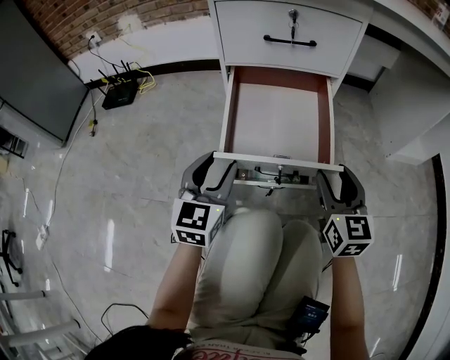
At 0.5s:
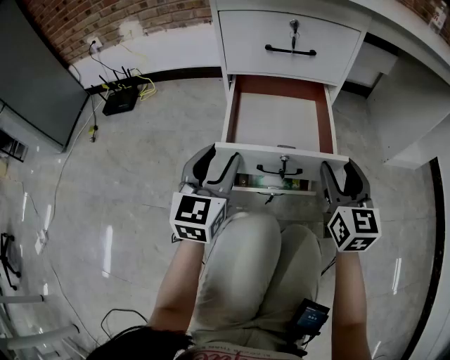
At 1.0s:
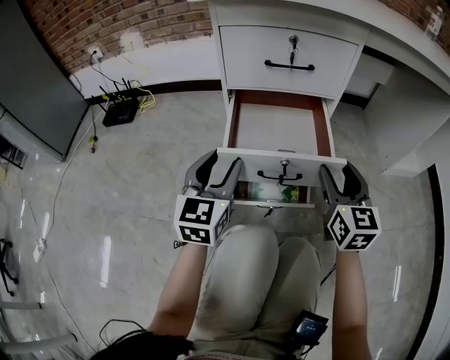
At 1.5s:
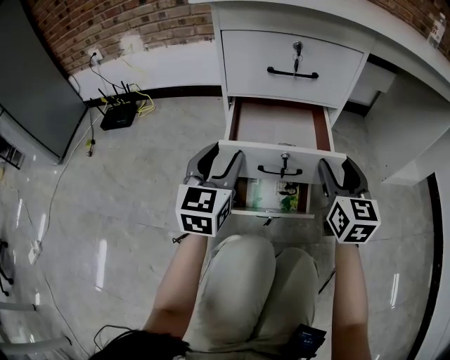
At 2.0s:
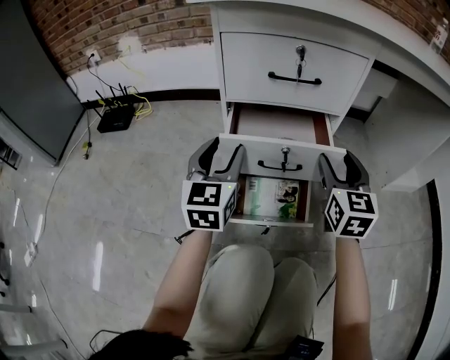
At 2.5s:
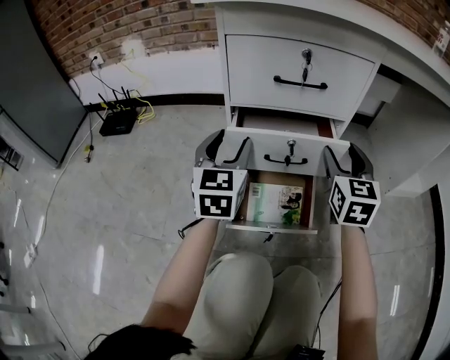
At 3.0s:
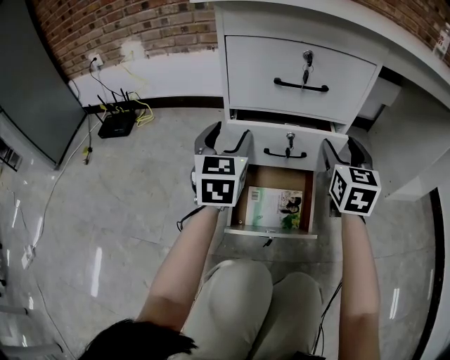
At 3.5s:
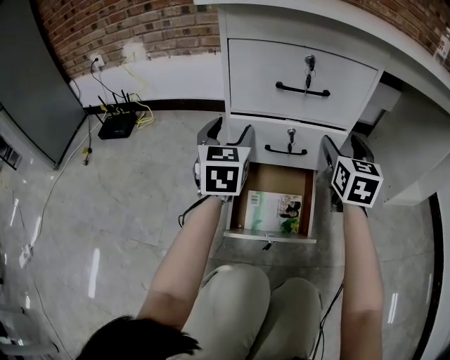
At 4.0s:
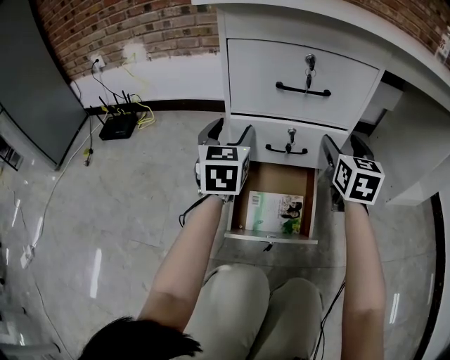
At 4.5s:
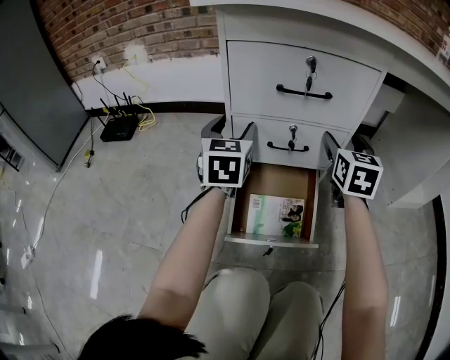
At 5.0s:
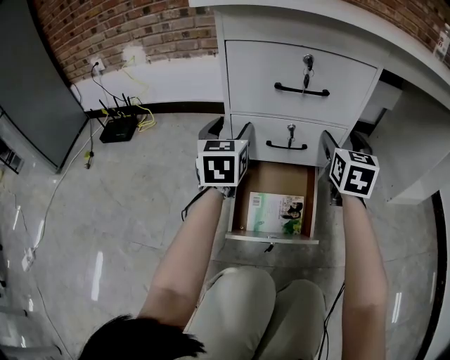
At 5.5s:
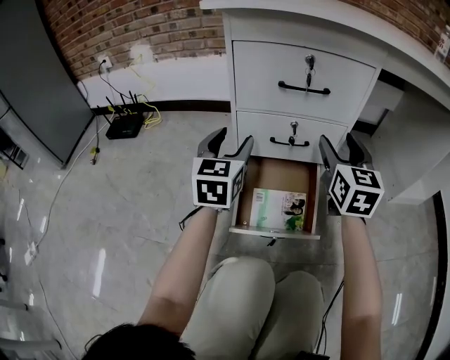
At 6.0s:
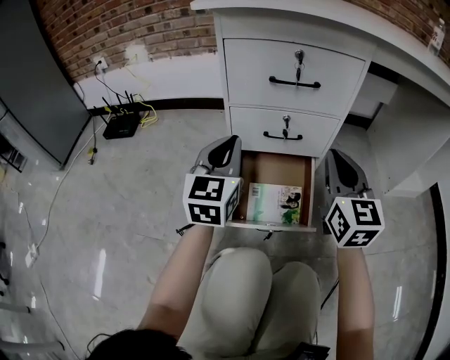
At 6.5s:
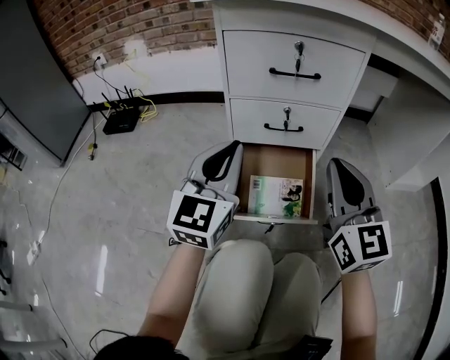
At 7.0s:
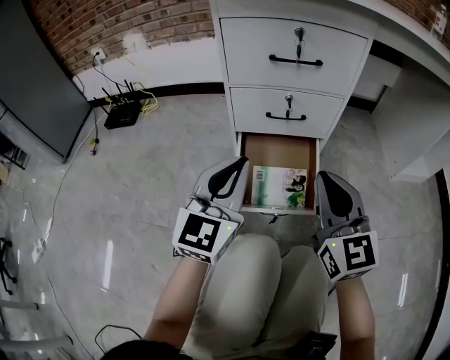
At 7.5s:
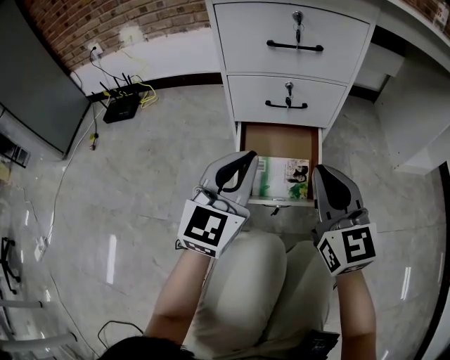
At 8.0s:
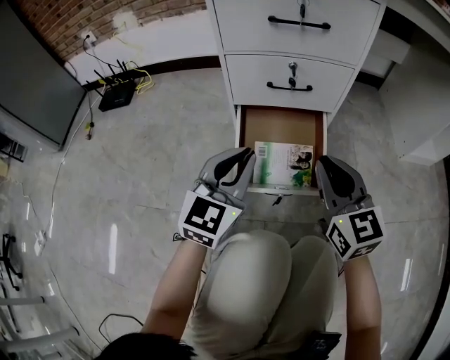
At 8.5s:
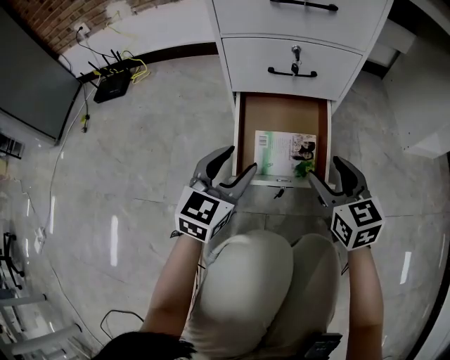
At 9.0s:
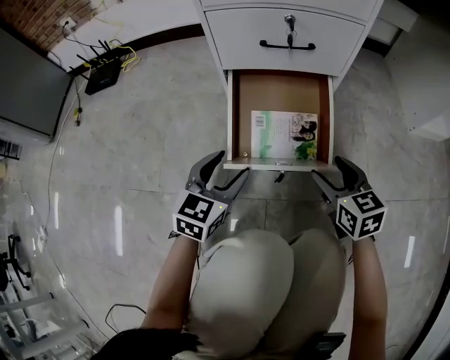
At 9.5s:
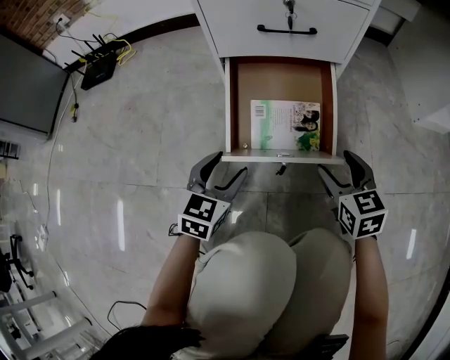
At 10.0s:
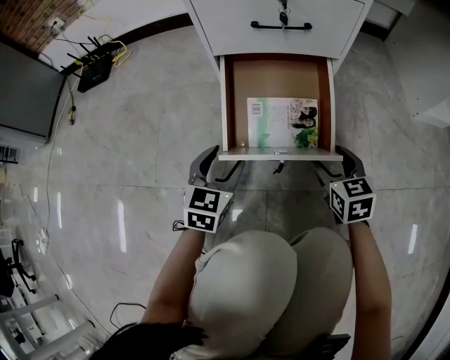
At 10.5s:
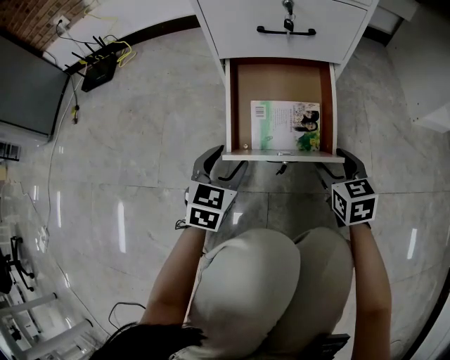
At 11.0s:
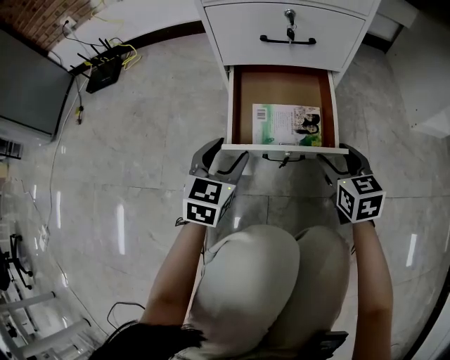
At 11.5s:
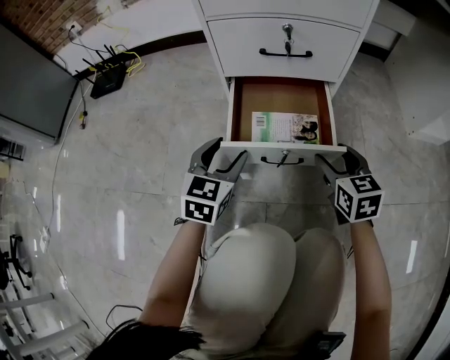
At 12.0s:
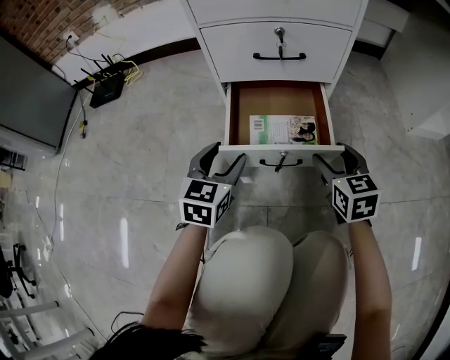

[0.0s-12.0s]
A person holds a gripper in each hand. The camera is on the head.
0.0s to 2.0s: Both grippers travel together forward, approximately 10 cm.
2.0s to 4.0s: Both grippers travel together forward, roughly 10 cm.
4.0s to 6.0s: The grippers both shift backward by approximately 10 cm. The left gripper closes its fingers, while the right gripper closes.
6.0s to 8.0s: Both grippers travel together downward and backward, about 15 cm.
8.0s to 10.0s: Both grippers travel together downward, approximately 20 cm. The left gripper rotates roughly 20 degrees, and opens up. The right gripper rotates some 30 degrees, and opens its fingers.
10.0s to 12.0s: The two grippers go approximately 10 cm upward.

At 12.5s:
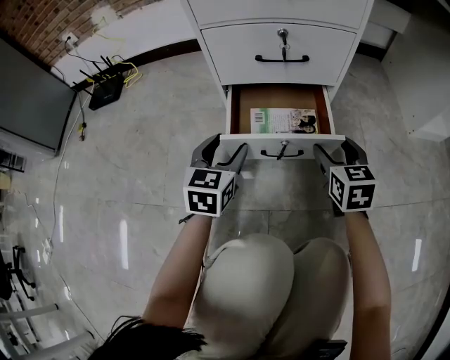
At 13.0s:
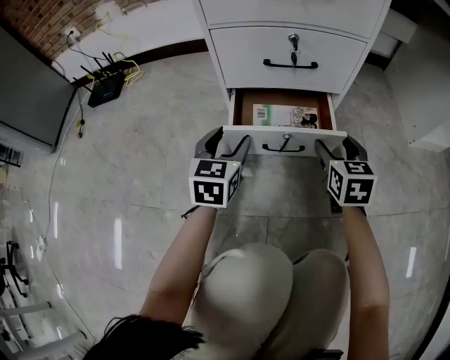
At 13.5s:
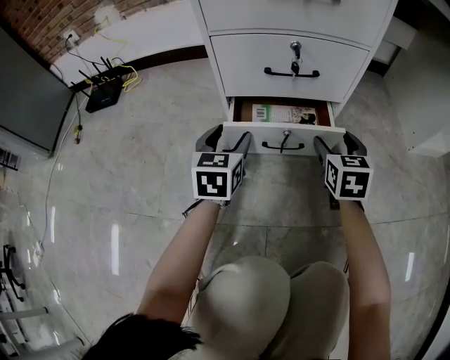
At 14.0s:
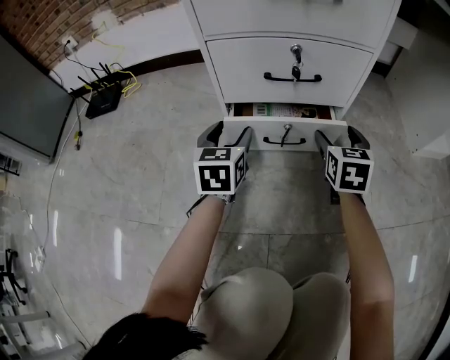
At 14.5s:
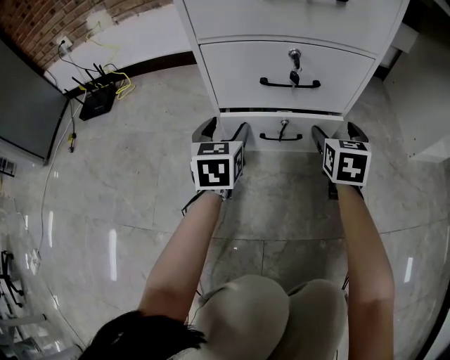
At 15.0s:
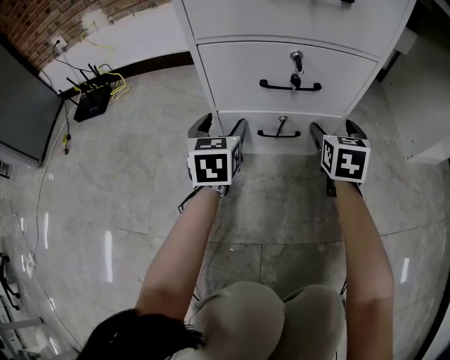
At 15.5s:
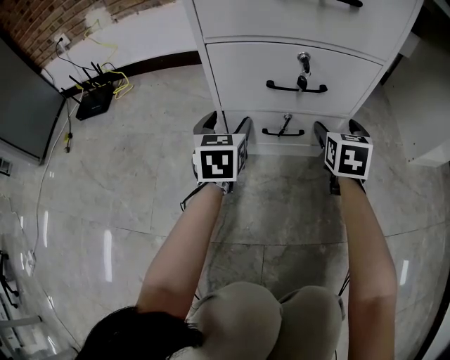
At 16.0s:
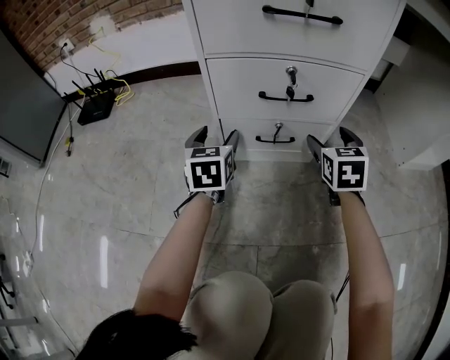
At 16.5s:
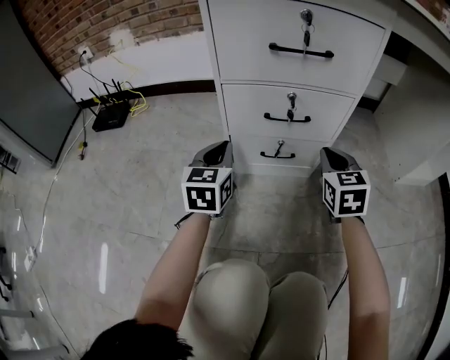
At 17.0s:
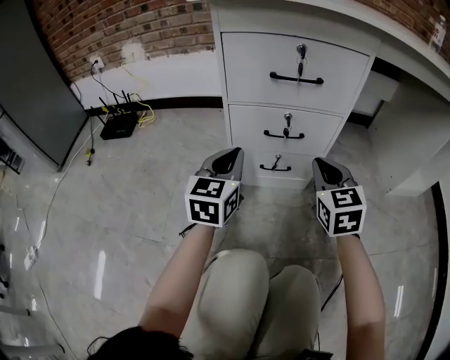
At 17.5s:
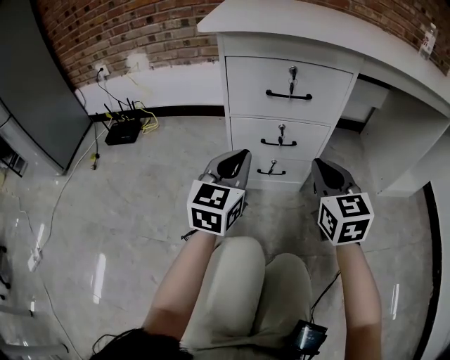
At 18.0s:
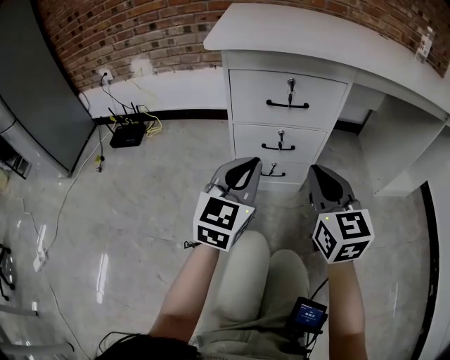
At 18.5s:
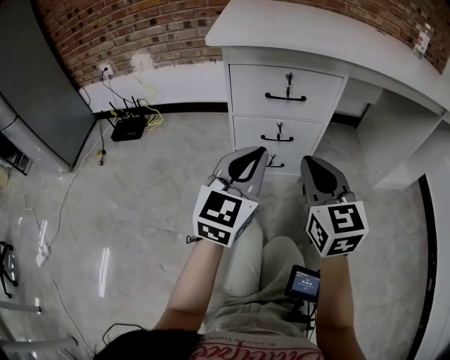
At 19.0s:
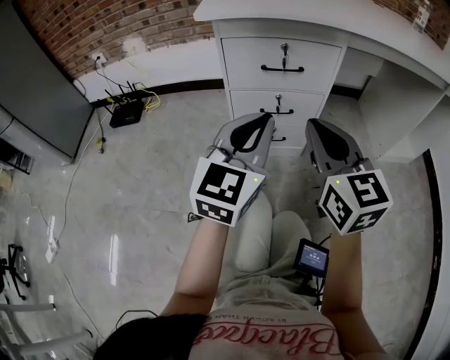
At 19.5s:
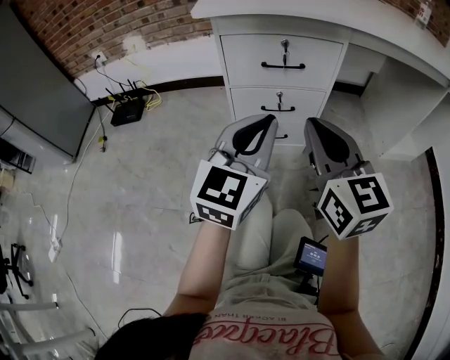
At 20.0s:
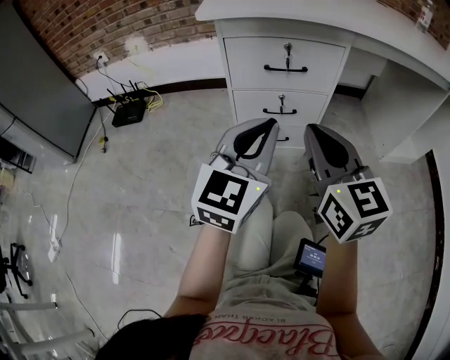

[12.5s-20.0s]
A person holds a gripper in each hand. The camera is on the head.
12.5s to 14.5s: The grippers both shift forward by roughly 15 cm.
14.5s to 16.5s: The right gripper travels upward and backward by approximately 10 cm, and closes up; the left gripper is displaced upward by approximately 10 cm, and closes up.
16.5s to 18.0s: The two grippers go some 25 cm upward and backward. The left gripper turns by approximately 20 degrees, while the right gripper swivels approximately 20 degrees.
18.0s to 20.0s: The two grippers go some 5 cm upward.

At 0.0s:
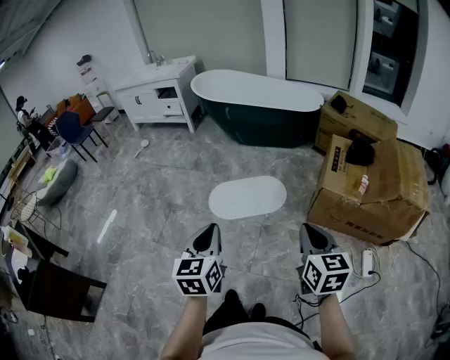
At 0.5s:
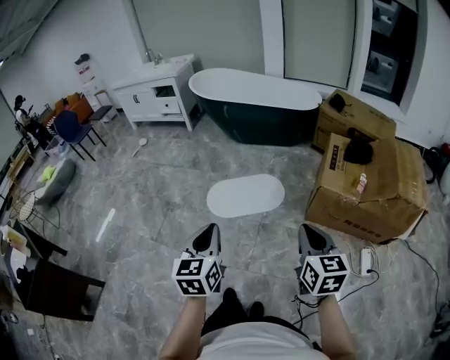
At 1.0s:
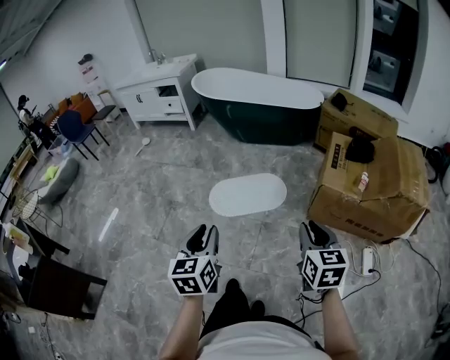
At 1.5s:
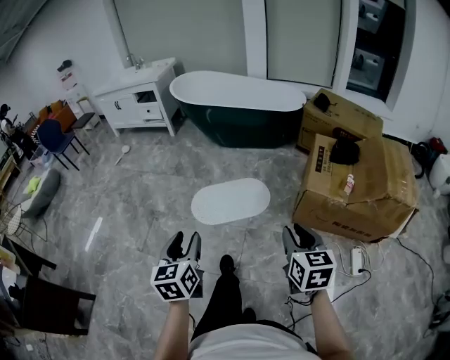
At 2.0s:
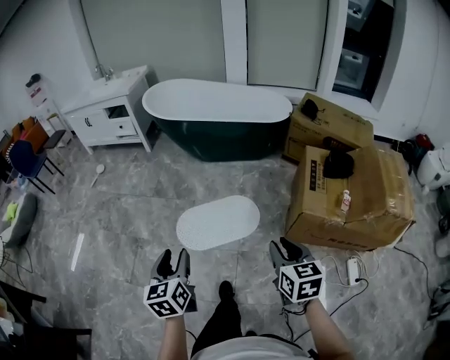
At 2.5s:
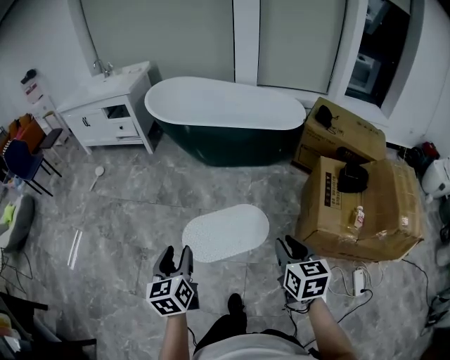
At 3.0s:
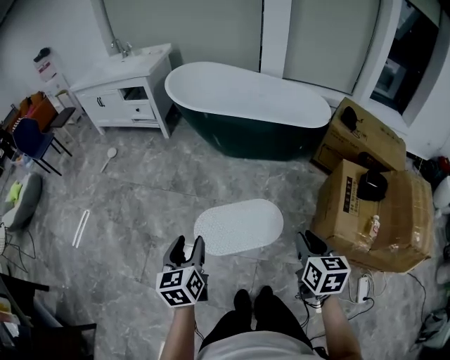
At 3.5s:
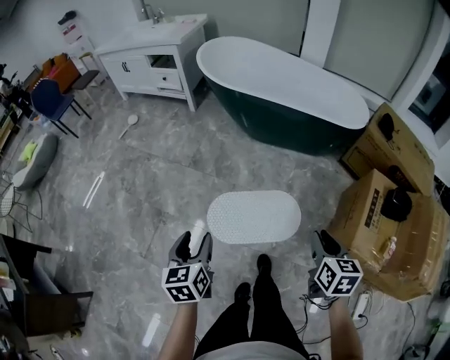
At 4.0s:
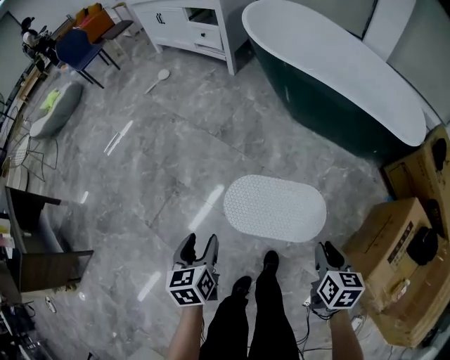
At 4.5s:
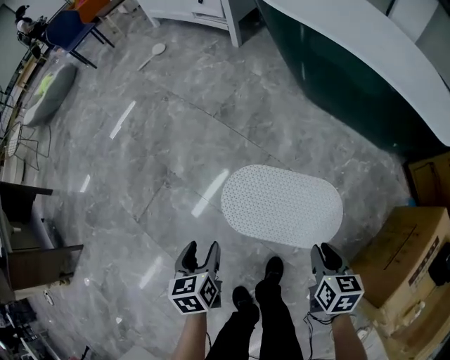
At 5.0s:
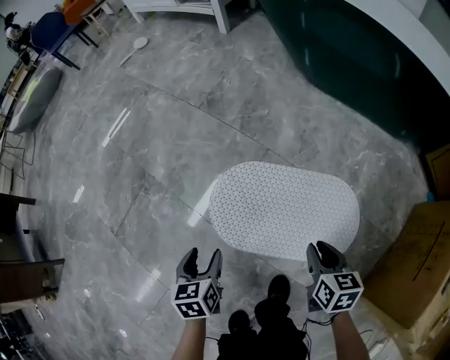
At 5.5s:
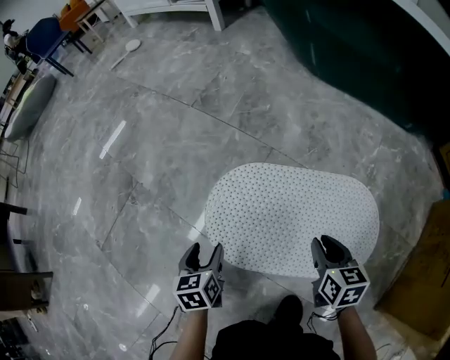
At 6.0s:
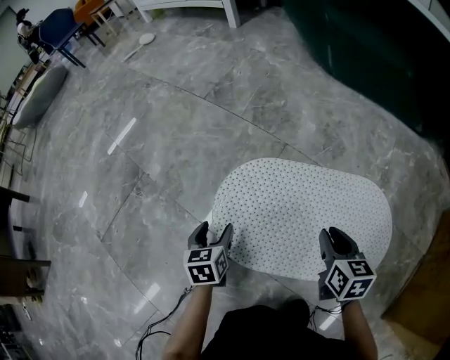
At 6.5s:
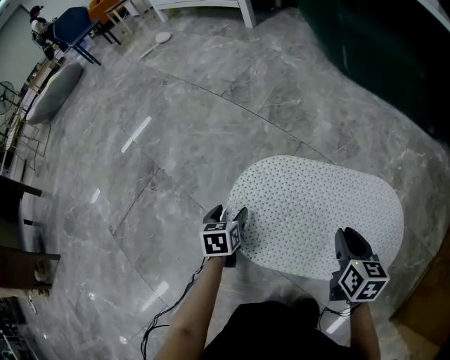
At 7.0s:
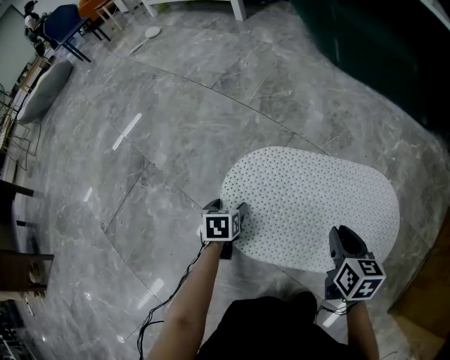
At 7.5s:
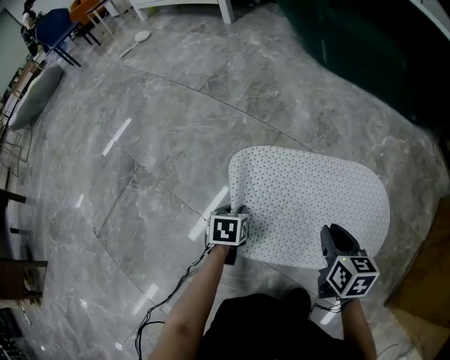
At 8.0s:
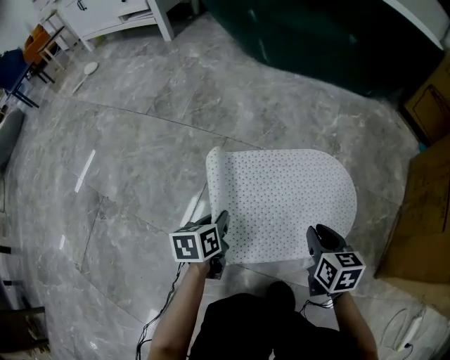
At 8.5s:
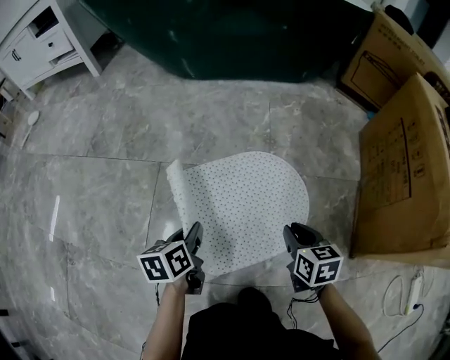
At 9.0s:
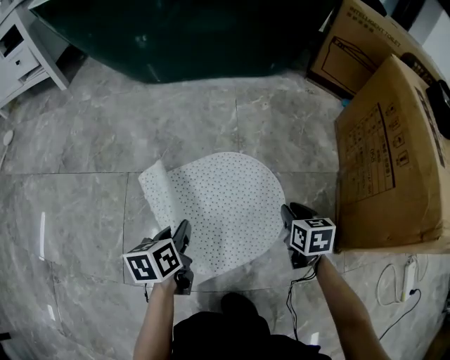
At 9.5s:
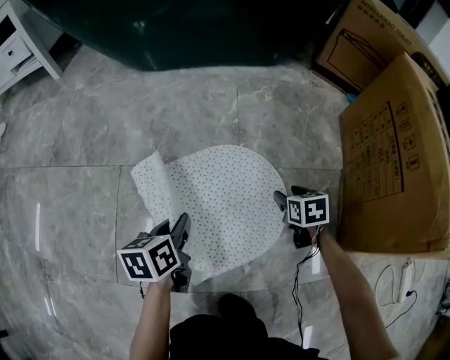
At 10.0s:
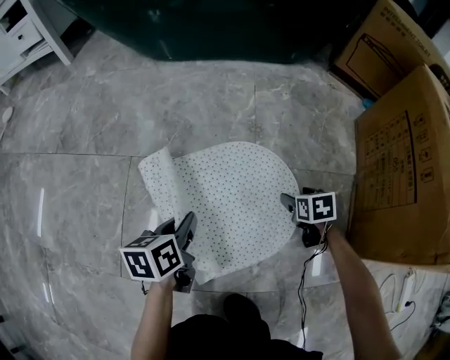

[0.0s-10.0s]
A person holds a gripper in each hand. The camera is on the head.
0.0s to 2.0s: The two grippers go about 20 cm forward. The left gripper opens its fingers.
2.0s to 4.0s: The left gripper is displaced forward, downward and to the left by approximately 35 cm, and changes its angle by about 30 degrees. Meanwhile the right gripper is displaced forward and downward by roughly 40 cm, and changes its angle by some 20 degrees.
4.0s to 6.0s: The two grippers go some 60 cm downward.
6.0s to 8.0s: The left gripper moves approximately 5 cm downward and comes back, swivels approximately 30 degrees, and closes up. Meanwhile the right gripper ends up about 10 cm from where it was.
8.0s to 10.0s: The left gripper travels to the right and forward by some 15 cm. Meanwhile the right gripper shifts approximately 25 cm to the right, forward and downward, swivels about 20 degrees, and opens.
